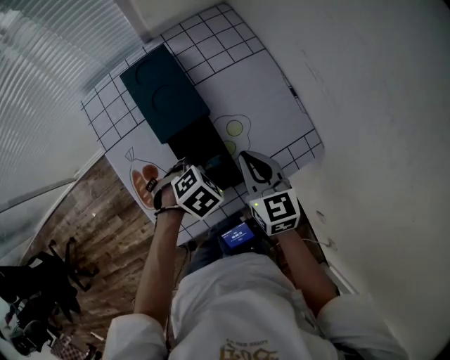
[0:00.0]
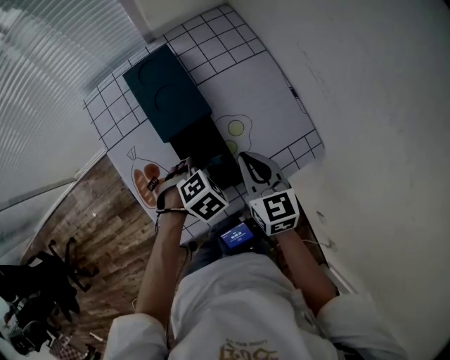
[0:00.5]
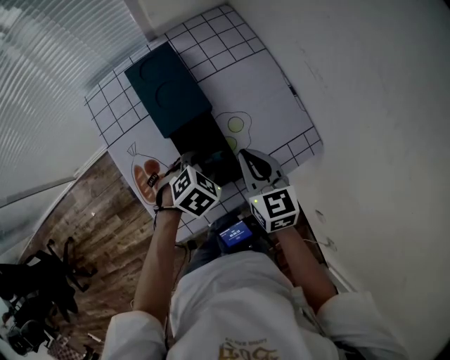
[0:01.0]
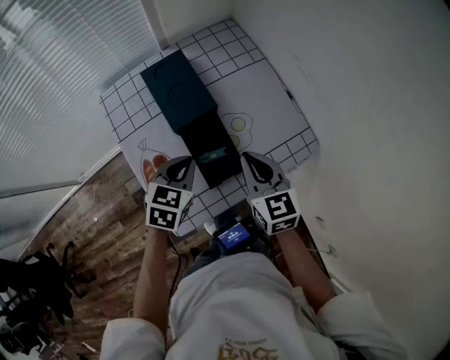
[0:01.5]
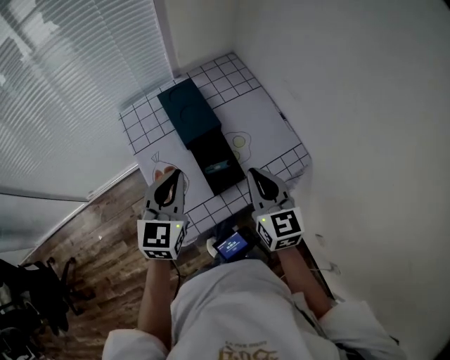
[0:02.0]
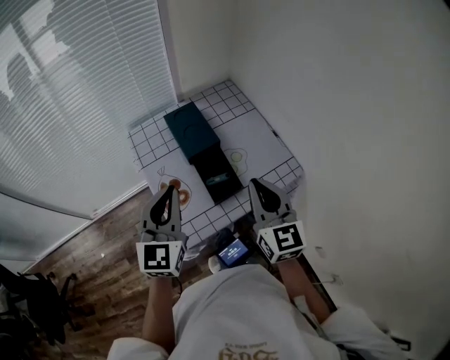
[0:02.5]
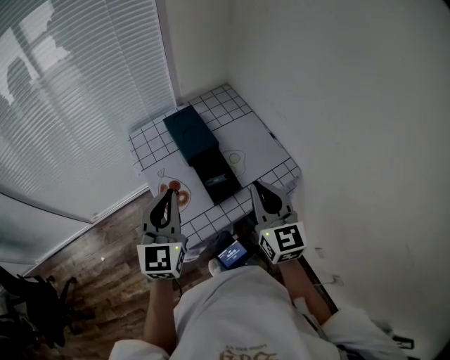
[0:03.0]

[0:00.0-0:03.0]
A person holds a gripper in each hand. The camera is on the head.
0:00.0 to 0:01.5: The left gripper heads upward and to the left, covering about 10 cm, swivels roughly 40 degrees, and closes. Meanwhile the right gripper moves roughly 5 cm.
0:01.5 to 0:03.0: Both grippers move upward and backward, some 20 cm. The left gripper angles its fingers upward, by approximately 40 degrees. The right gripper changes its angle by some 20 degrees.

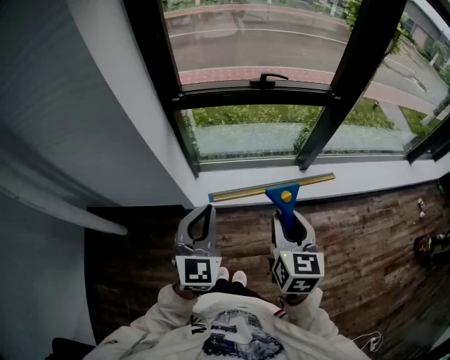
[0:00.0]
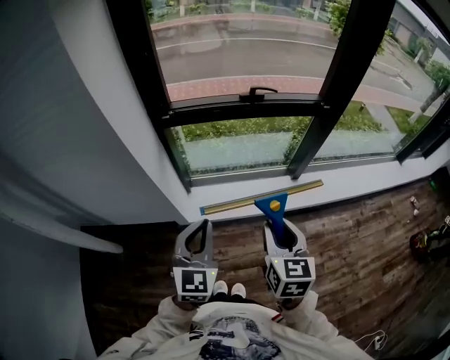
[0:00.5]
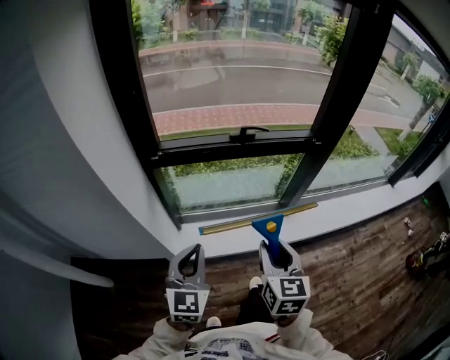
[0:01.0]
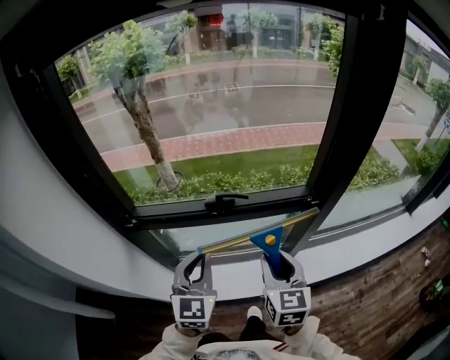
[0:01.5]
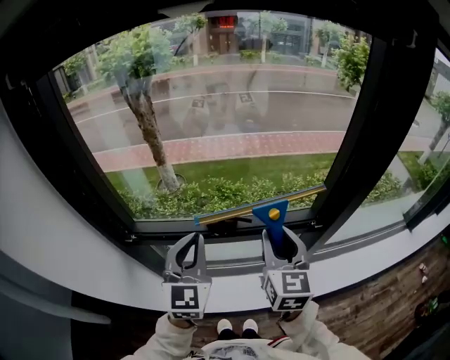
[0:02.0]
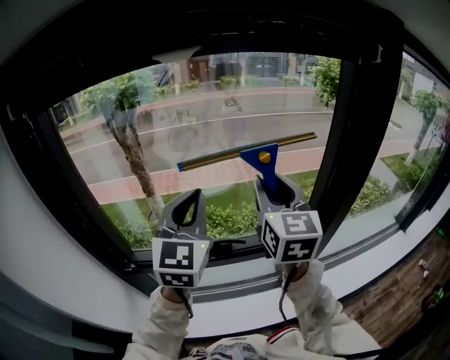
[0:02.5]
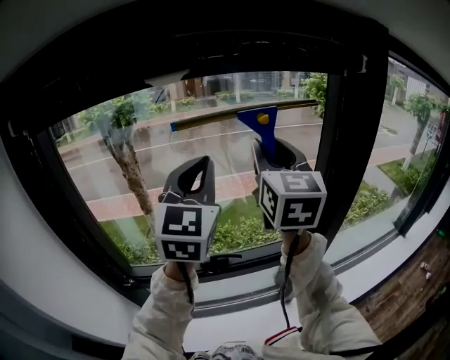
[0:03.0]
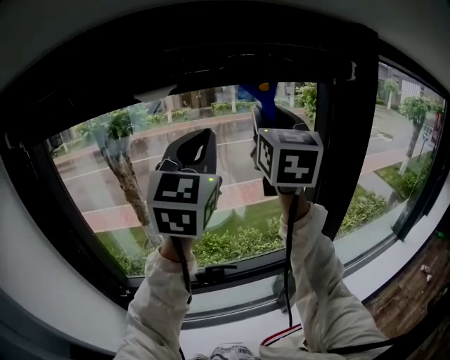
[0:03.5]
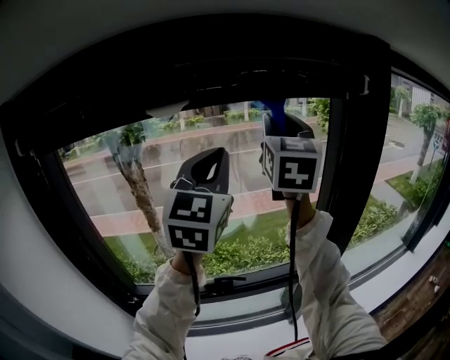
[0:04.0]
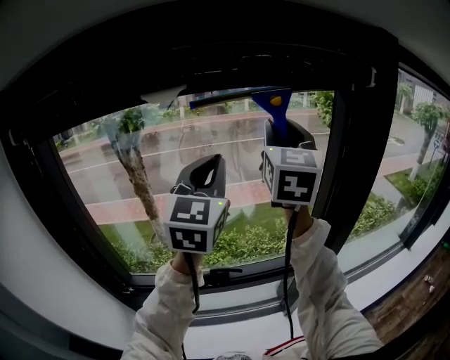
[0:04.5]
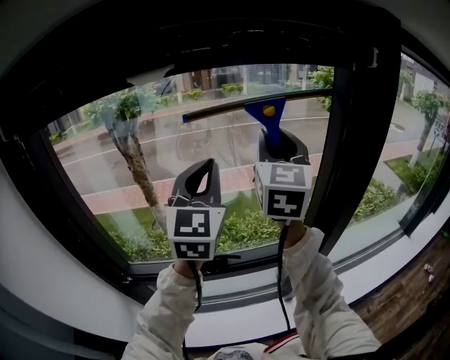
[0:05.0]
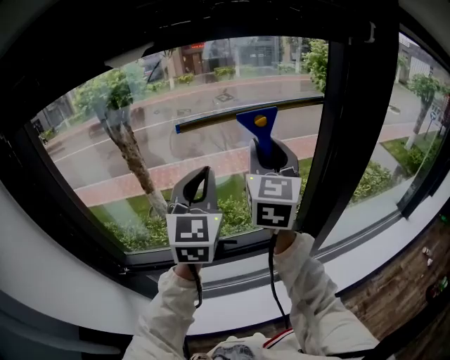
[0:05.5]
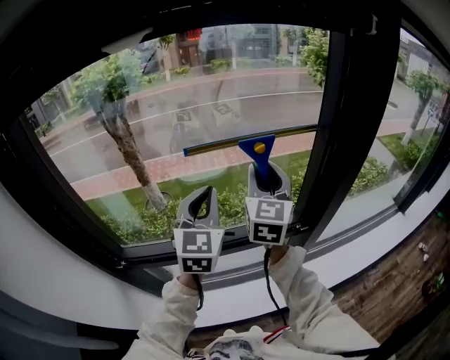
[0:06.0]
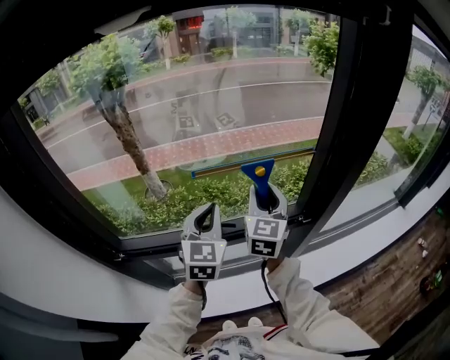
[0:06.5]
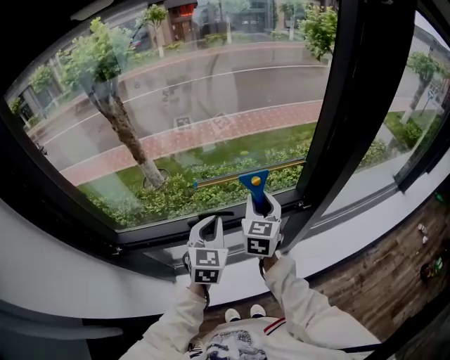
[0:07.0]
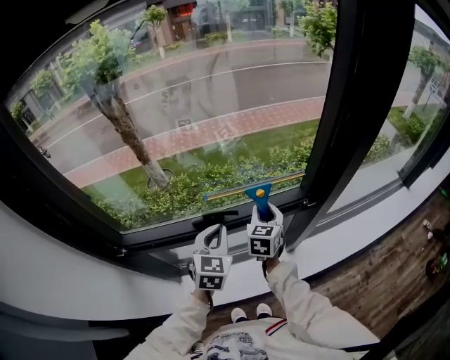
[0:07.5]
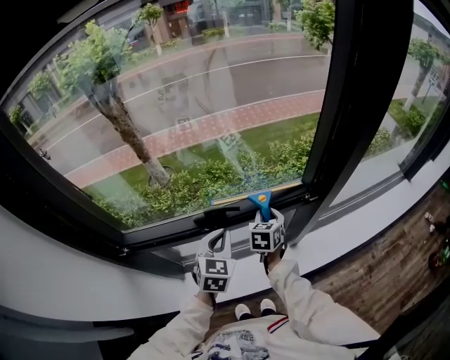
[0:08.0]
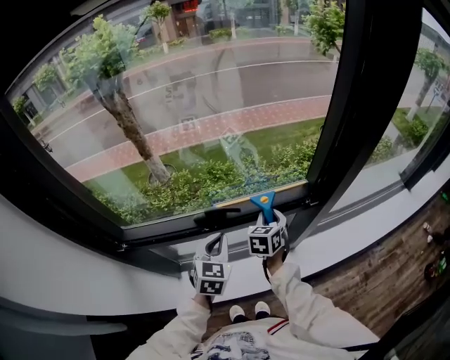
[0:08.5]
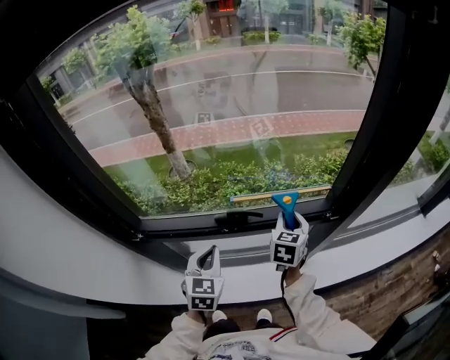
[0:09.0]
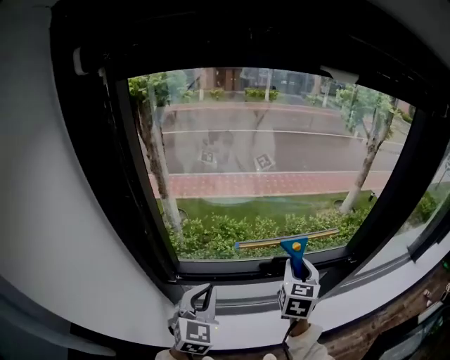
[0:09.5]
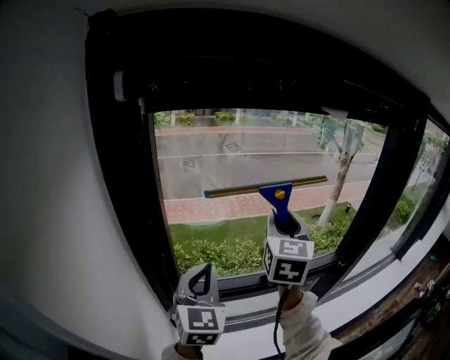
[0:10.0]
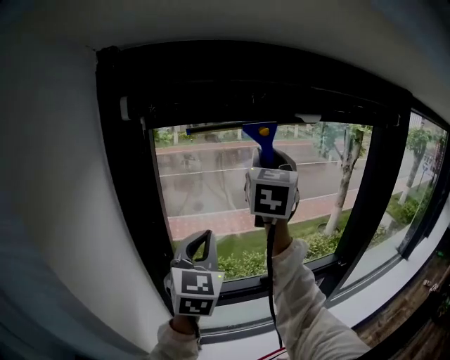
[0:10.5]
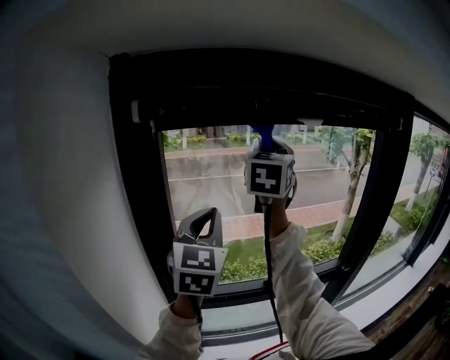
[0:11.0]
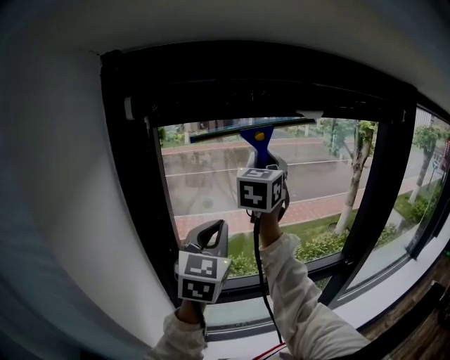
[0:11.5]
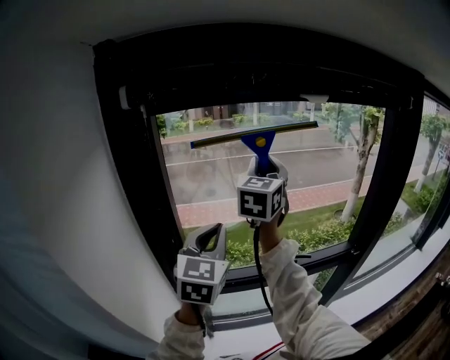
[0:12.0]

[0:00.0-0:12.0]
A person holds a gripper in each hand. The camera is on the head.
0:00.0 to 0:02.0: The pair of grippers is taken forward, some 50 cm.
0:02.0 to 0:04.0: Both grippers travel together upward and forward, about 40 cm. The right gripper changes its angle by about 30 degrees, while the left gripper changes its angle by about 20 degrees.
0:04.0 to 0:06.0: Both grippers travel together downward, about 25 cm.
0:06.0 to 0:08.0: Both grippers travel together downward, about 30 cm. The left gripper swivels approximately 30 degrees; the right gripper tips its fingers downward by some 40 degrees.
0:08.0 to 0:10.0: The left gripper moves to the left and upward, about 40 cm, and swivels approximately 20 degrees; the right gripper moves upward and to the left, some 50 cm, and angles its fingers upward, by some 40 degrees.
0:10.0 to 0:12.0: The two grippers go about 10 cm upward.

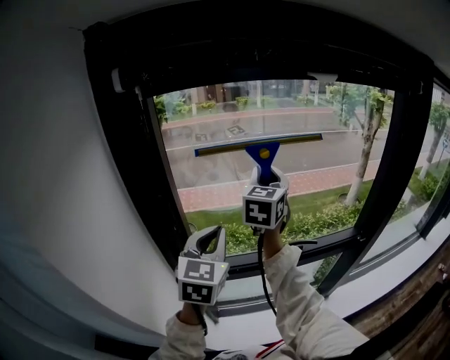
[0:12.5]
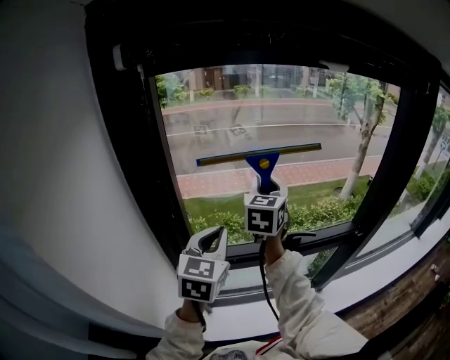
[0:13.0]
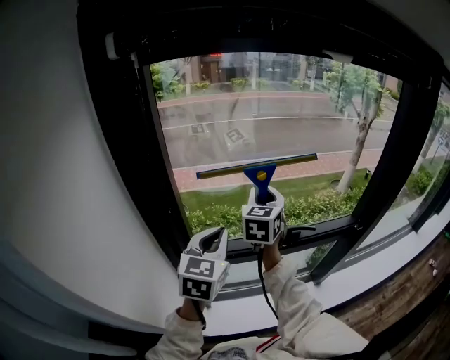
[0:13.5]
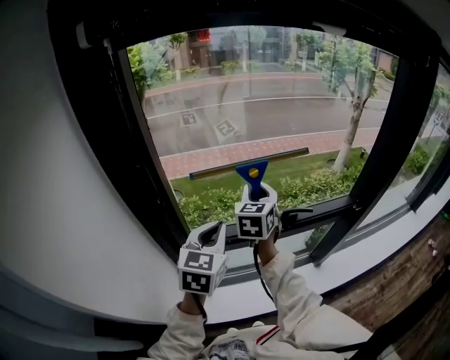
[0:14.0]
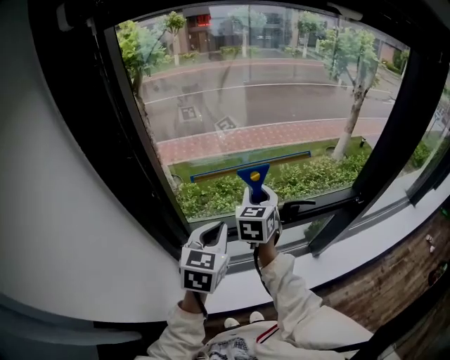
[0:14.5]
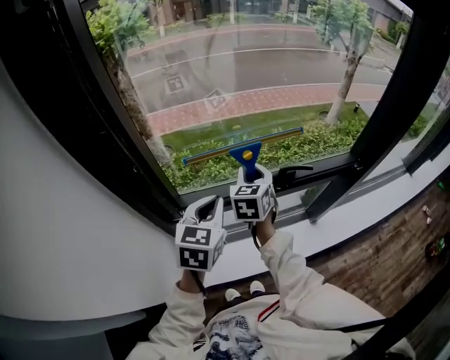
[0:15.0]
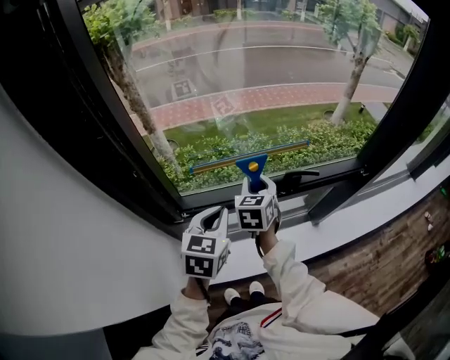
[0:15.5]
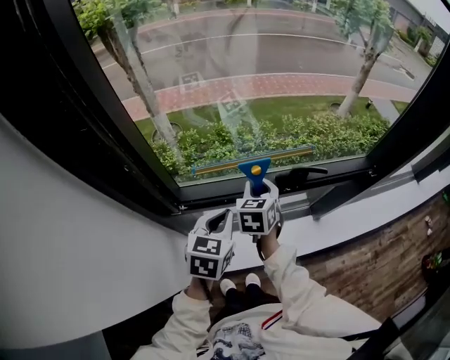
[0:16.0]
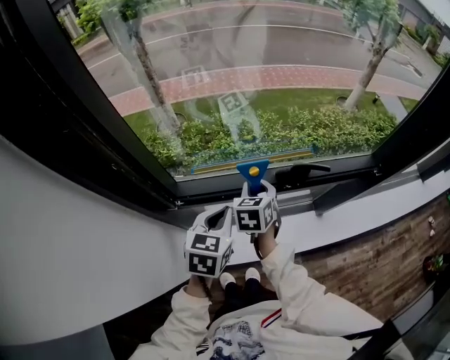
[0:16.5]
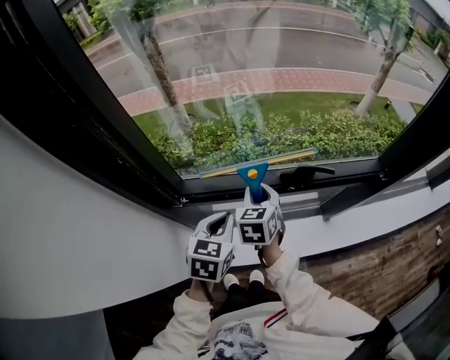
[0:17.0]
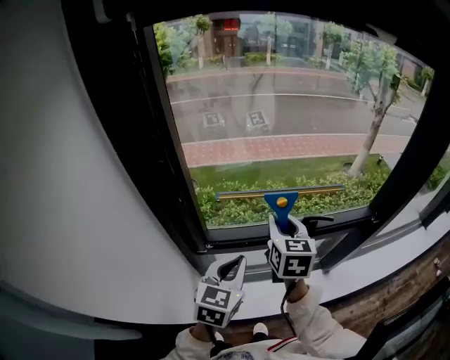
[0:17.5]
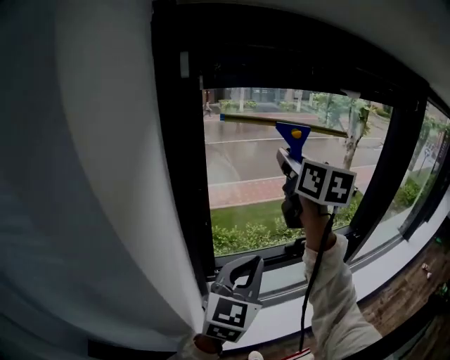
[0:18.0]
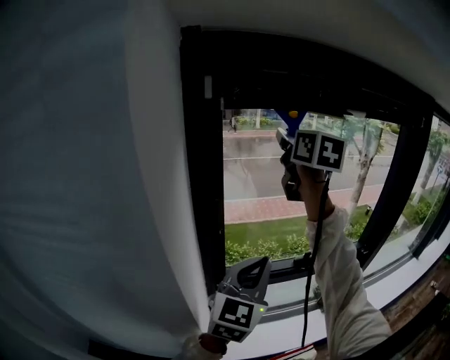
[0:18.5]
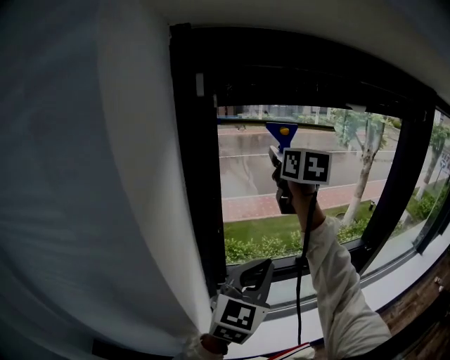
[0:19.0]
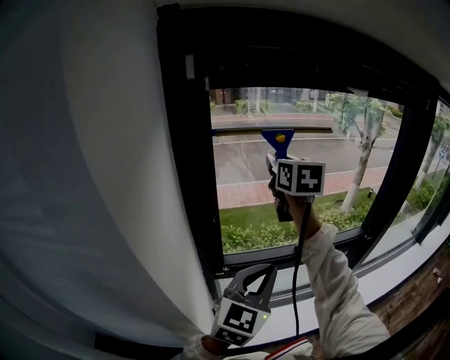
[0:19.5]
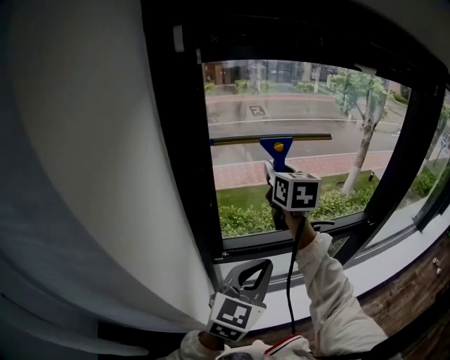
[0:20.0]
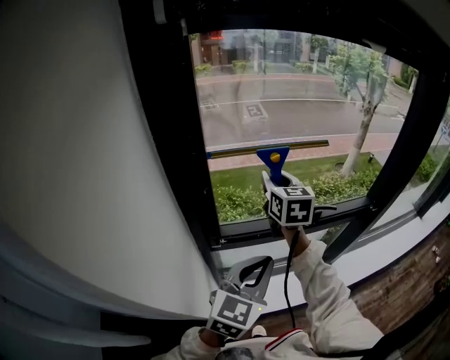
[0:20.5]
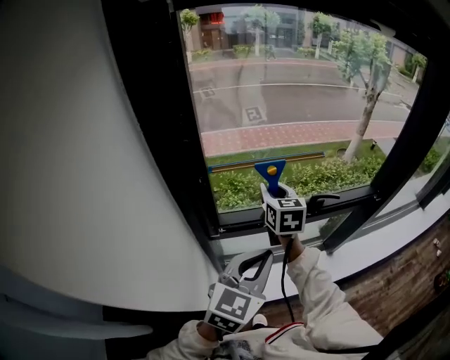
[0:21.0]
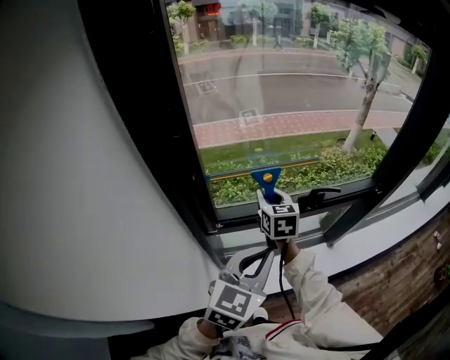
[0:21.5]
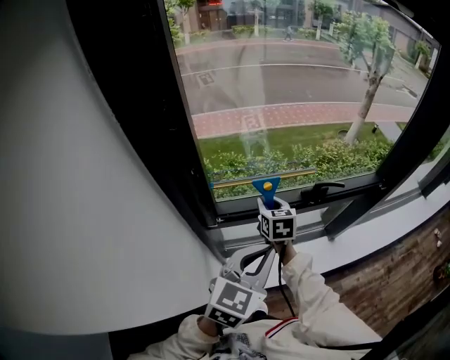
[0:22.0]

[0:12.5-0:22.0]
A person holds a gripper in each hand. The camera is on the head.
0:12.5 to 0:14.5: The left gripper shifts approximately 15 cm downward; the right gripper heads downward, covering roughly 25 cm.
0:14.5 to 0:16.5: Both grippers travel together downward, some 15 cm. The right gripper changes its angle by roughly 20 degrees.
0:16.5 to 0:18.0: The left gripper moves upward and backward, about 30 cm, and tips its fingers upward by approximately 30 degrees. The right gripper heads upward, covering about 50 cm, and tips its fingers upward by approximately 40 degrees.
0:18.0 to 0:20.0: The right gripper is displaced downward by roughly 15 cm. The left gripper moves downward, roughly 5 cm.
0:20.0 to 0:22.0: The right gripper goes roughly 35 cm downward, and rotates roughly 20 degrees; the left gripper shifts approximately 10 cm downward.

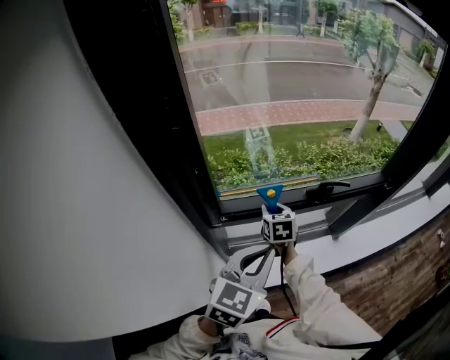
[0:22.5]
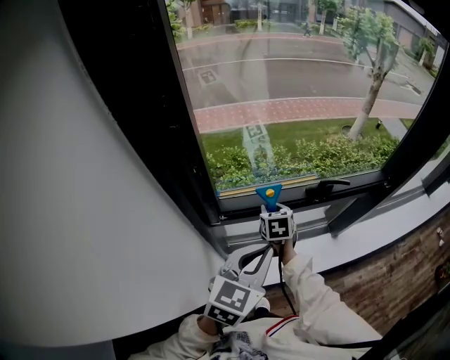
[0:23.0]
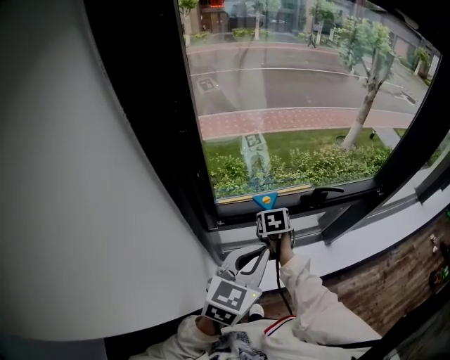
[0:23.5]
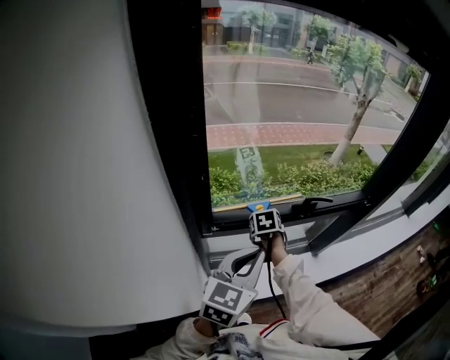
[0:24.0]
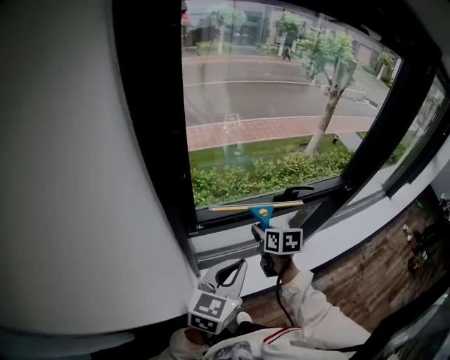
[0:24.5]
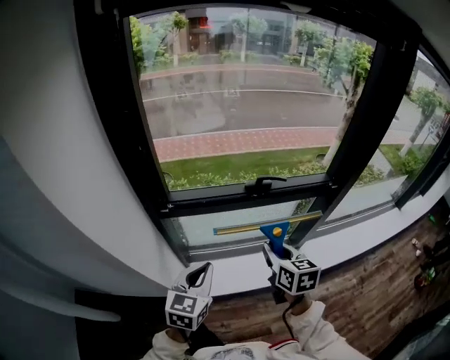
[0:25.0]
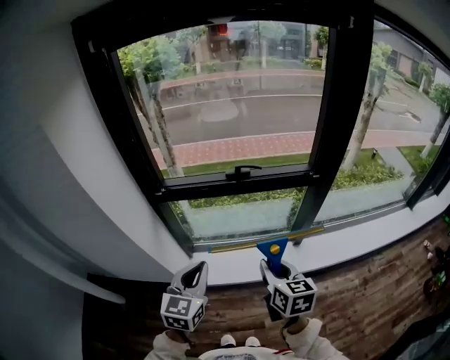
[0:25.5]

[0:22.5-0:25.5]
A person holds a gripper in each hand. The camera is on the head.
0:22.5 to 0:24.0: The right gripper swivels roughly 20 degrees.
0:24.0 to 0:25.5: The right gripper heads backward, to the right and upward, covering approximately 50 cm, and tips its fingers upward by some 40 degrees. Meanwhile the left gripper heads backward and to the right, covering about 30 cm, and turns by about 20 degrees.
